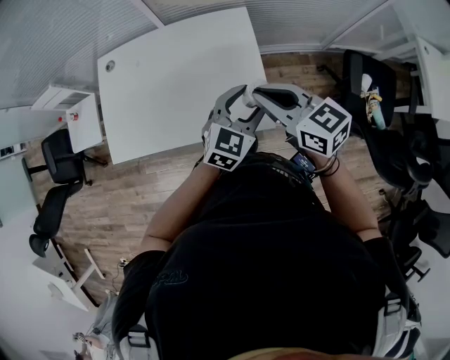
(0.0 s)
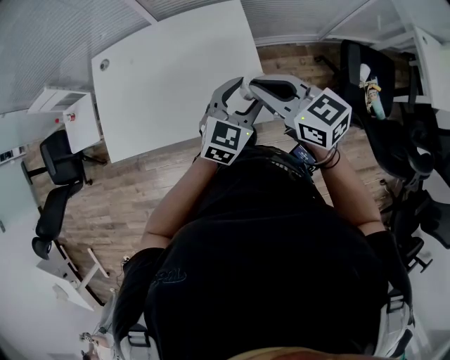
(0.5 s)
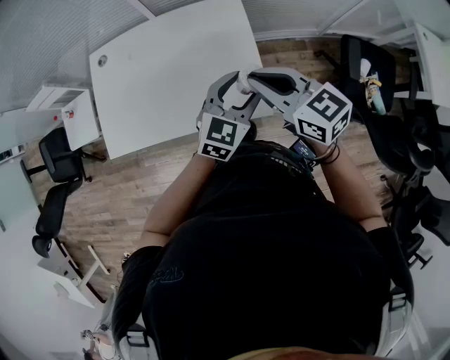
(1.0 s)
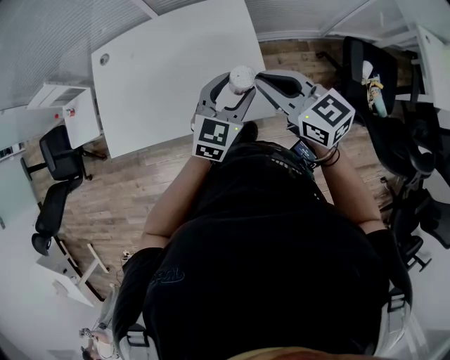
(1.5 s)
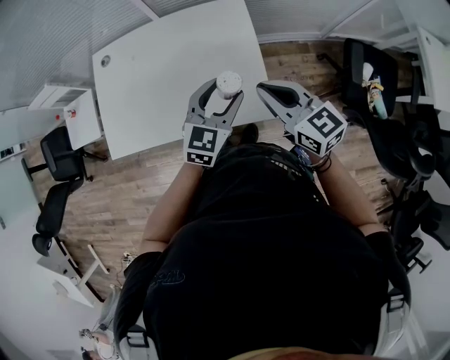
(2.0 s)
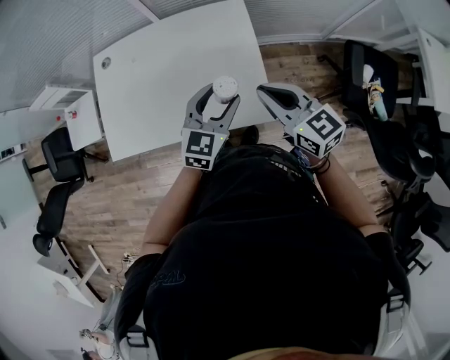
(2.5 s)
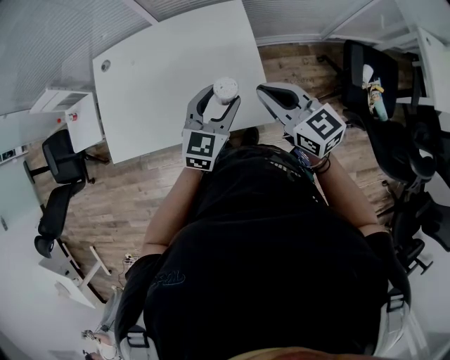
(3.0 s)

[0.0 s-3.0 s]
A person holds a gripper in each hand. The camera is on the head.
0.0 to 1.5 s: The grippers stay close to where they were, moving slightly.
1.5 to 3.0 s: There are only small adjustments of the grippers.

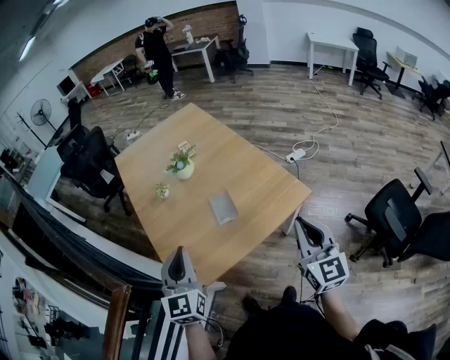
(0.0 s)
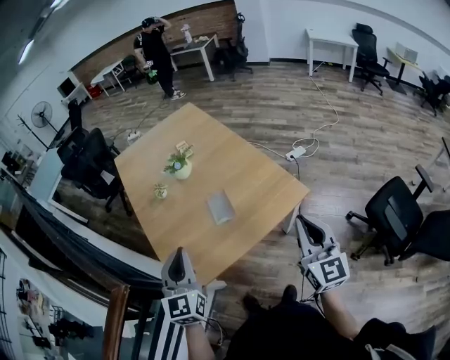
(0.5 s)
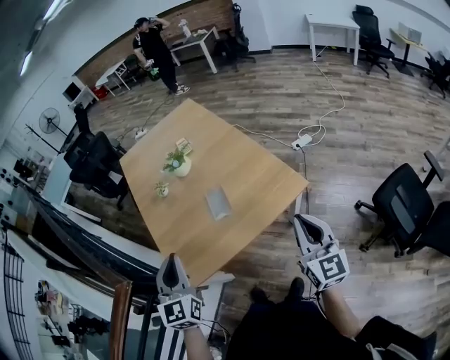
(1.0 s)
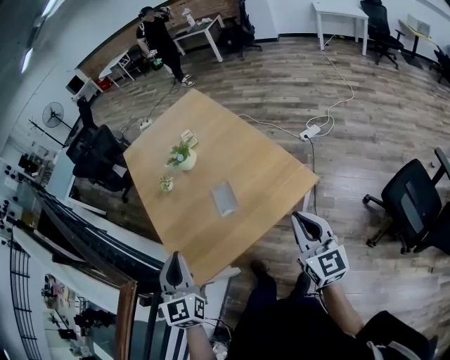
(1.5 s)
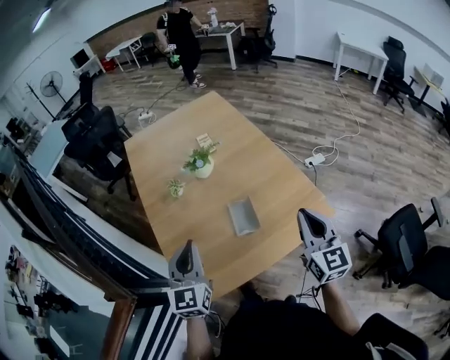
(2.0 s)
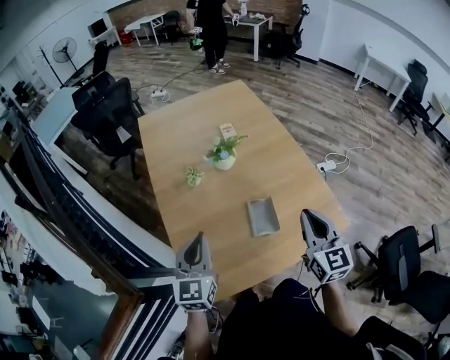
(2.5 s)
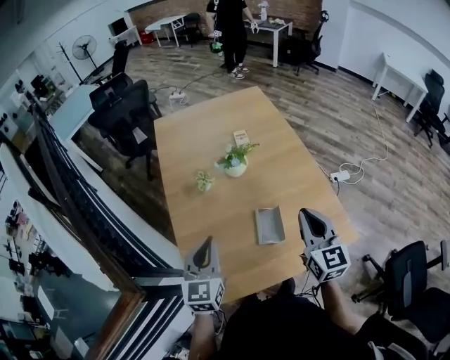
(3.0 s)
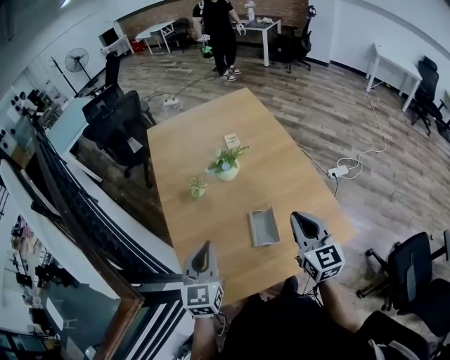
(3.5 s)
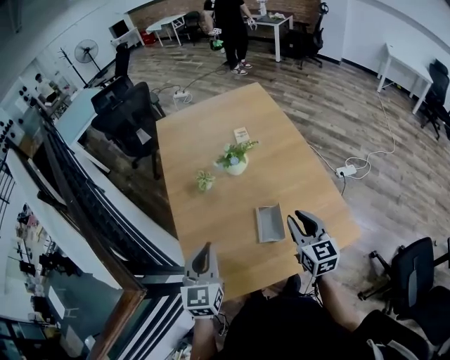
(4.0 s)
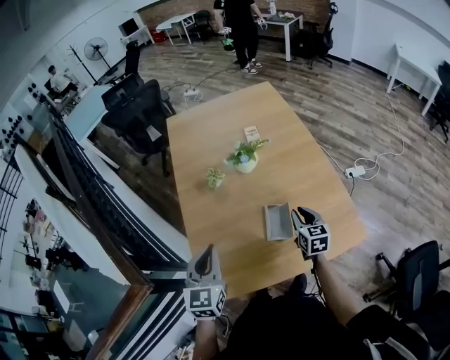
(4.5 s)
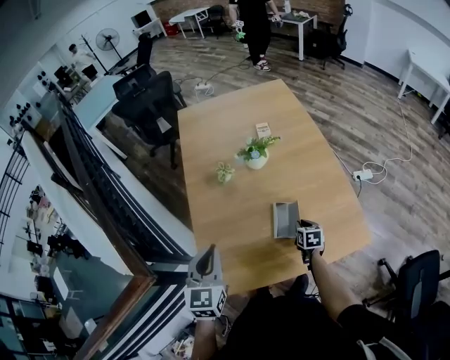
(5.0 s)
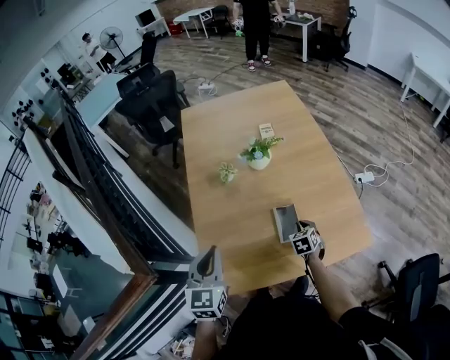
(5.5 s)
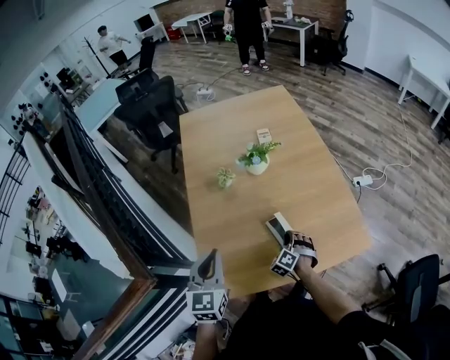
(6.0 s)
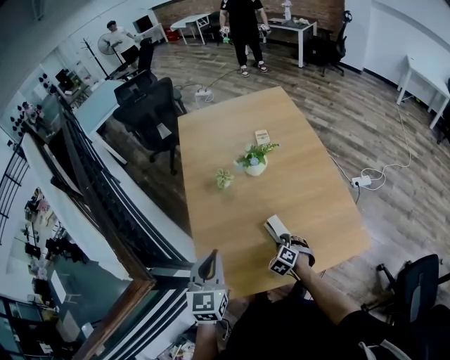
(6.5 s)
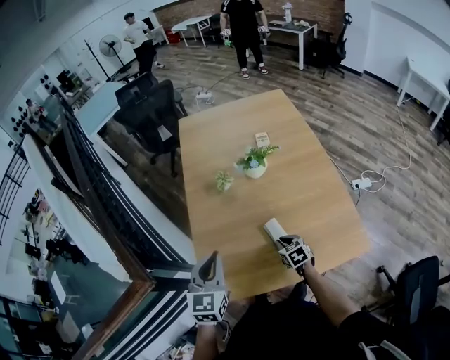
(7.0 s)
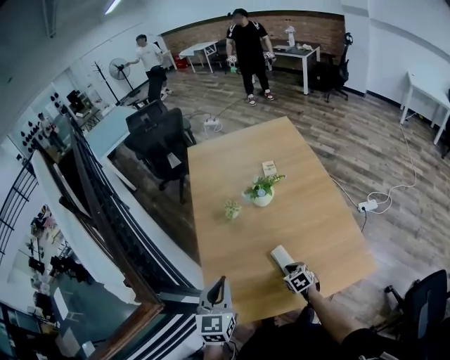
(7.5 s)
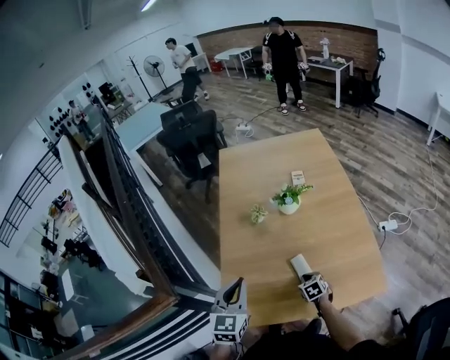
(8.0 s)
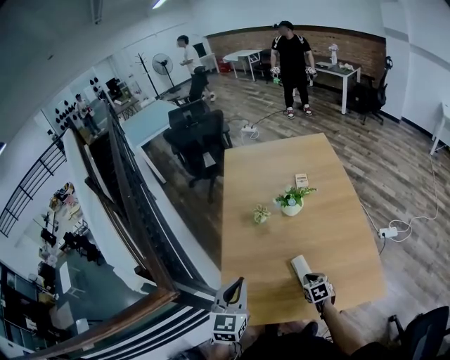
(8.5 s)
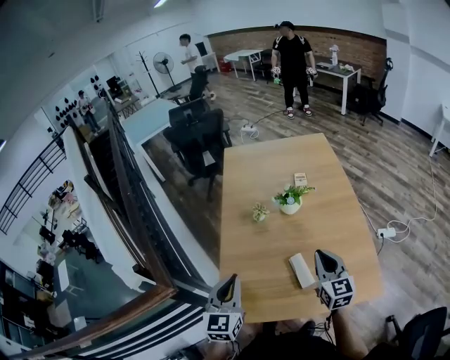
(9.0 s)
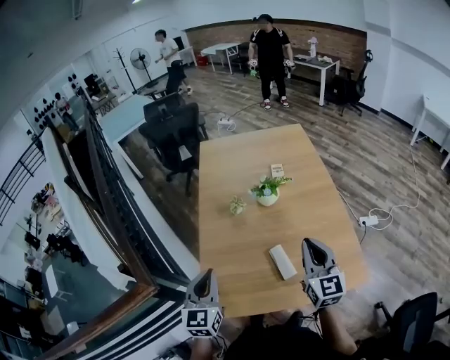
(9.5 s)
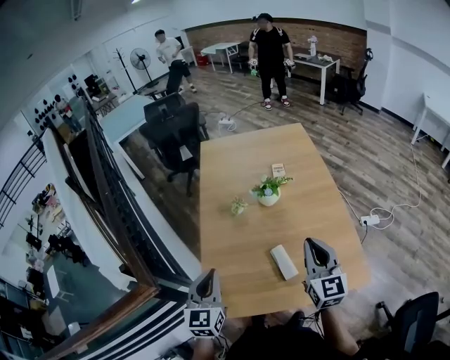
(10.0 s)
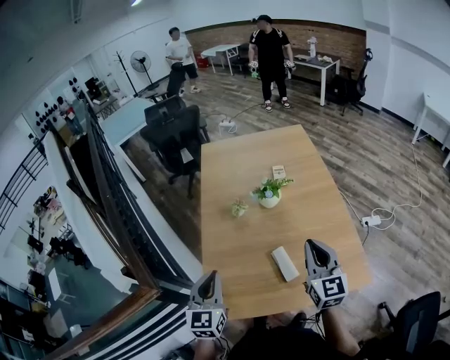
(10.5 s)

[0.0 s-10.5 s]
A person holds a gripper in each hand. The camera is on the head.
0.0 to 2.0 s: The grippers both shift forward by some 15 cm.
2.0 to 4.0 s: The left gripper moves approximately 5 cm. The right gripper is displaced forward, to the left and downward by roughly 15 cm, and opens its fingers.
4.0 to 6.5 s: The right gripper heads downward, covering some 25 cm, and tilts its fingers some 40 degrees downward.
6.5 to 8.5 s: The right gripper turns by approximately 40 degrees, and closes up.
8.5 to 10.5 s: The right gripper goes roughly 30 cm upward, and points its fingers approximately 50 degrees further upward.

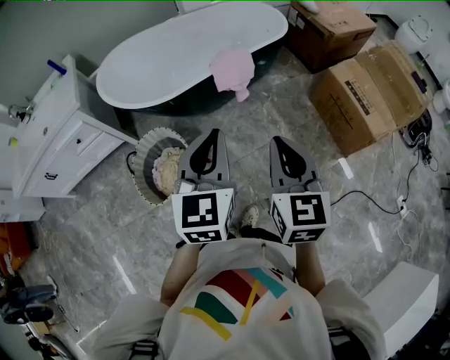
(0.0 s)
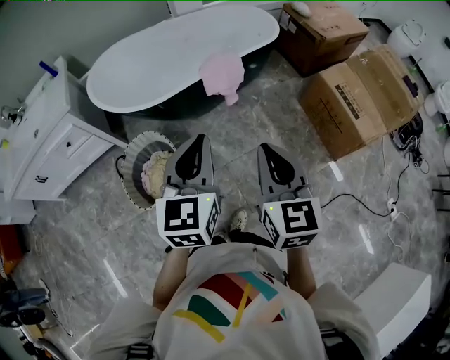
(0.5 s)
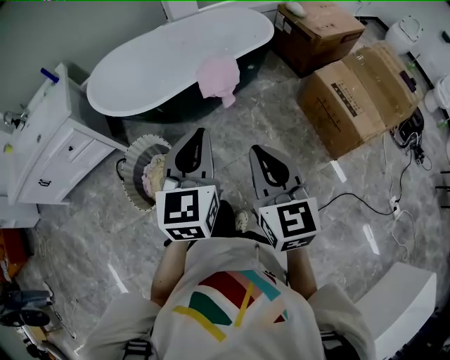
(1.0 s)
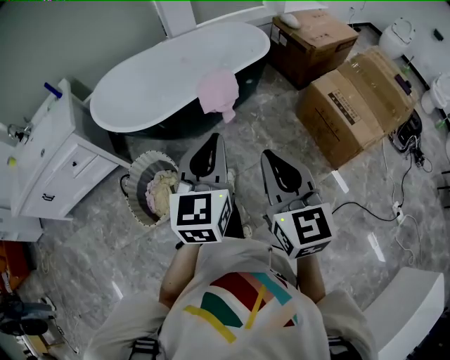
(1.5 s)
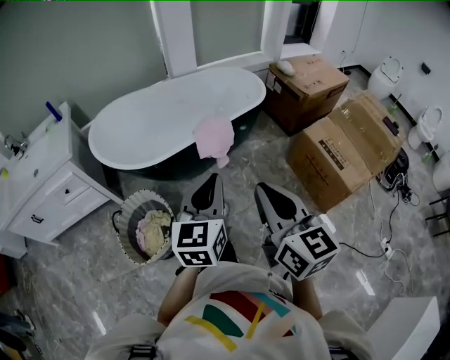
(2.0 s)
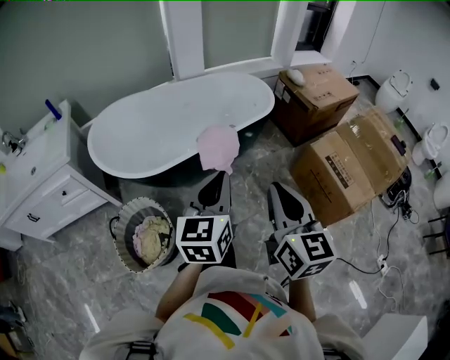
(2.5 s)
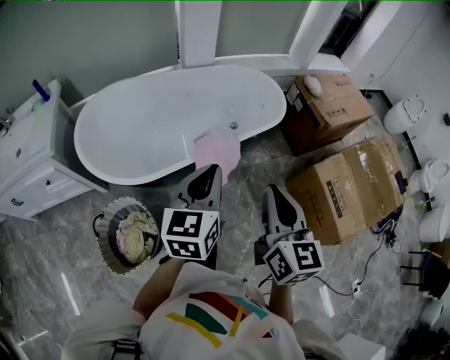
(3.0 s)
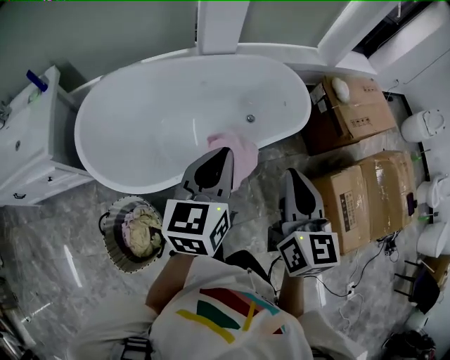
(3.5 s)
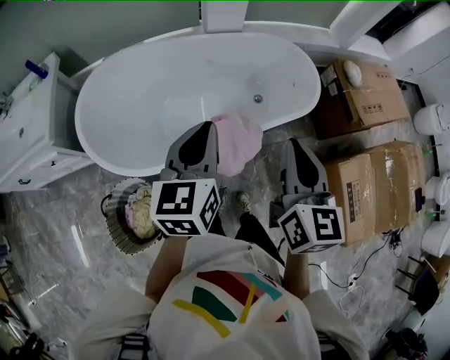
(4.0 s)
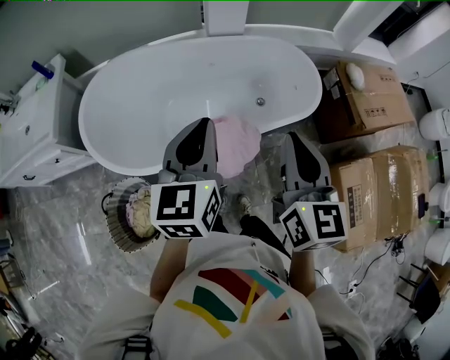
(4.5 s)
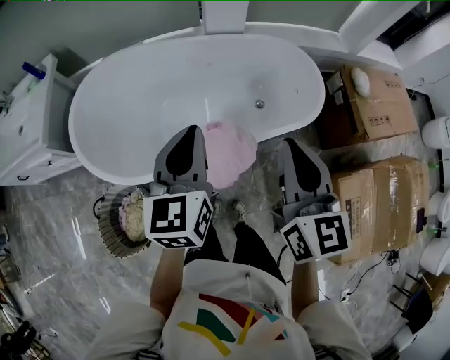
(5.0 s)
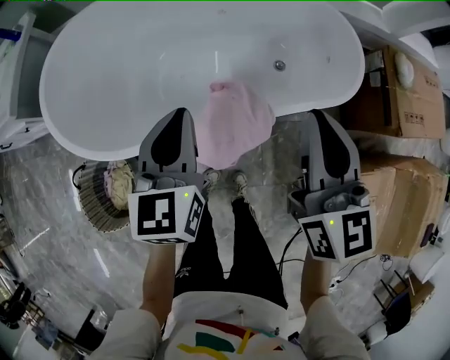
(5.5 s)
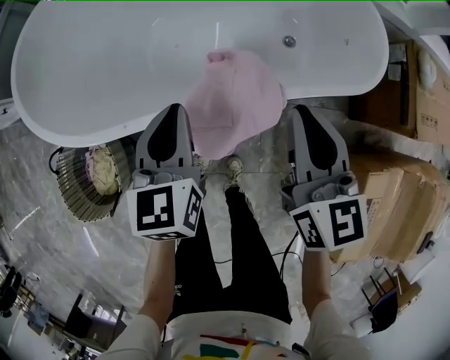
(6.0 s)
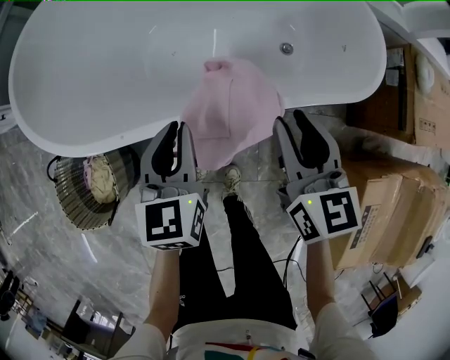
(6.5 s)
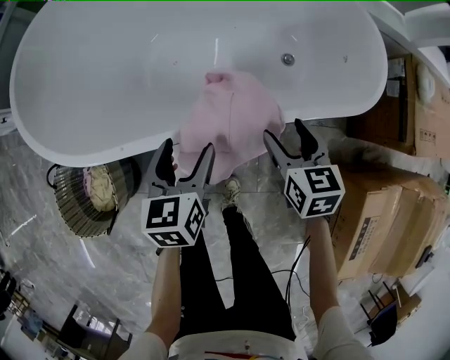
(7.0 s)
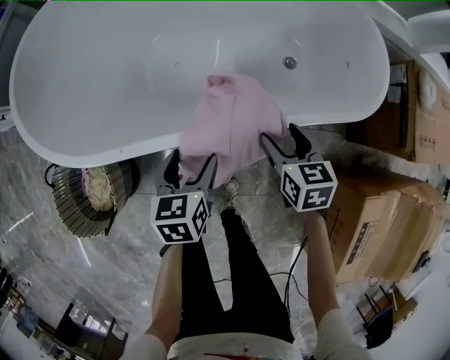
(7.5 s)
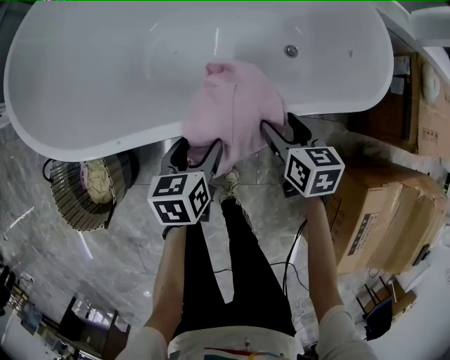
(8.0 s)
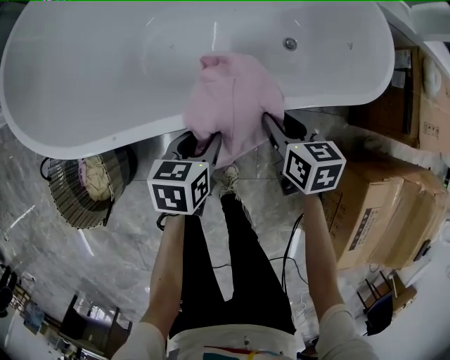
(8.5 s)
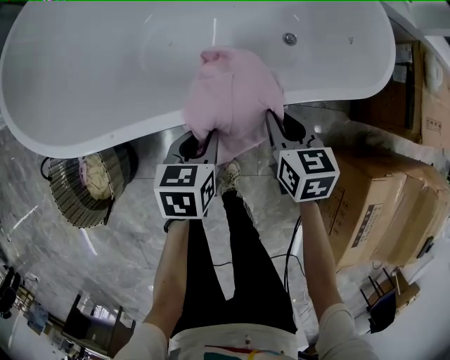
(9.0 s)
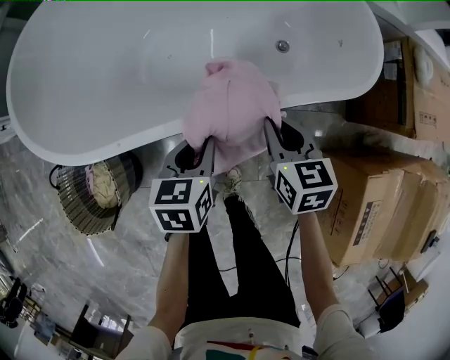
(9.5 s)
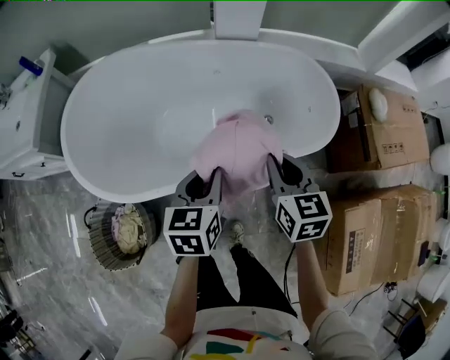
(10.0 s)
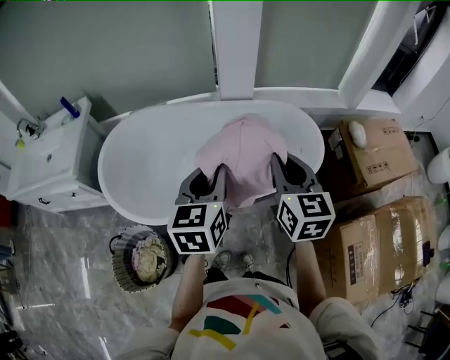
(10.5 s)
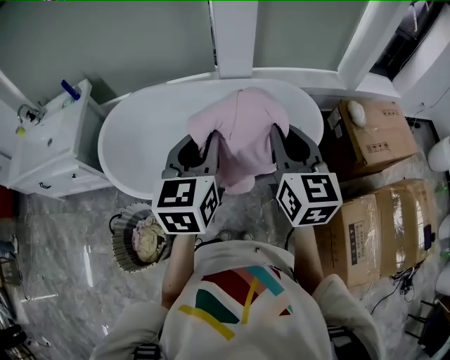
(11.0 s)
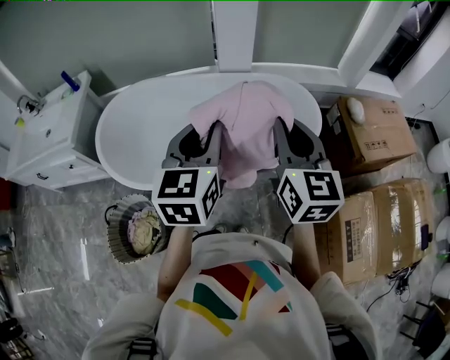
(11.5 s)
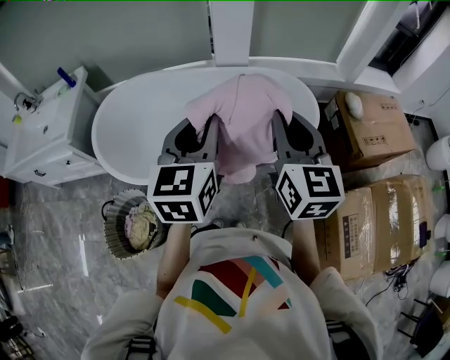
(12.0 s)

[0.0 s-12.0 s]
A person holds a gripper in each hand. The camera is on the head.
0.0 to 2.0 s: The right gripper moves upward, approximately 5 cm. The left gripper changes place by some 5 cm.
2.0 to 4.0 s: The pair of grippers is taken forward, some 40 cm.
4.0 to 6.0 s: Both grippers move downward, about 30 cm. The right gripper rotates some 20 degrees; the left gripper changes its angle by approximately 20 degrees.
6.0 to 8.0 s: The grippers both shift downward by about 20 cm. The right gripper rotates roughly 30 degrees, and opens. The left gripper turns by roughly 30 degrees, and opens.
8.0 to 10.0 s: Both grippers travel together upward, approximately 30 cm. The right gripper turns by some 20 degrees, and closes up; the left gripper changes its angle by about 20 degrees, and closes up.
10.0 to 12.0 s: Both grippers move upward, some 30 cm. The right gripper changes its angle by roughly 30 degrees; the left gripper turns by some 30 degrees.

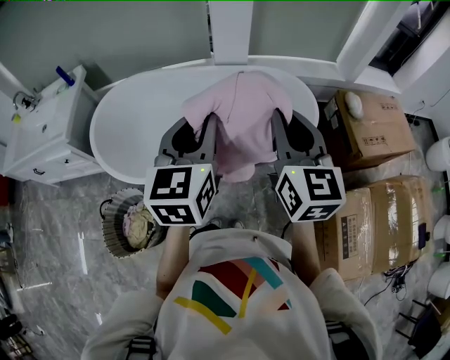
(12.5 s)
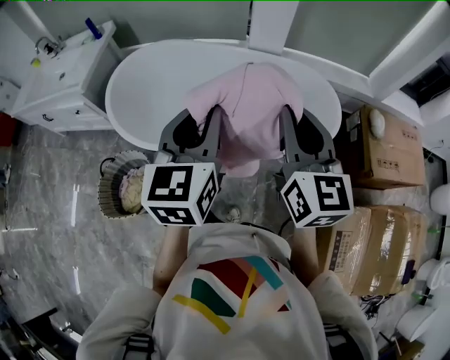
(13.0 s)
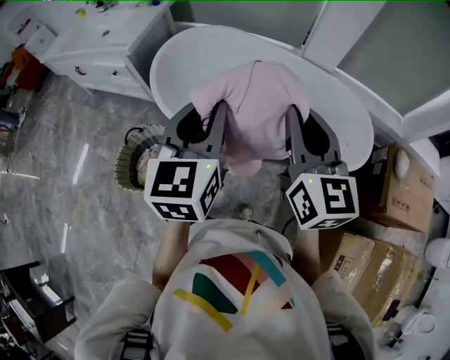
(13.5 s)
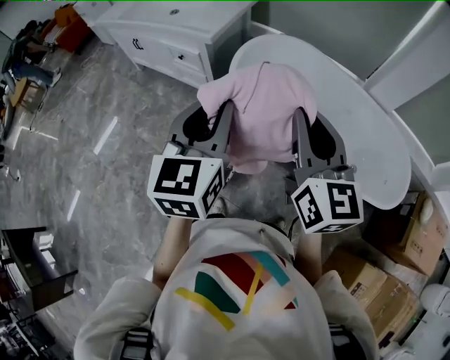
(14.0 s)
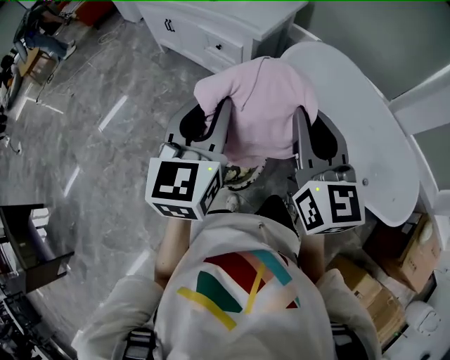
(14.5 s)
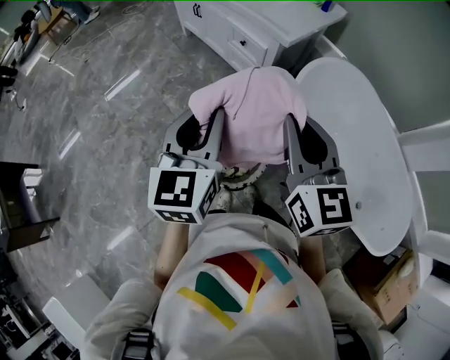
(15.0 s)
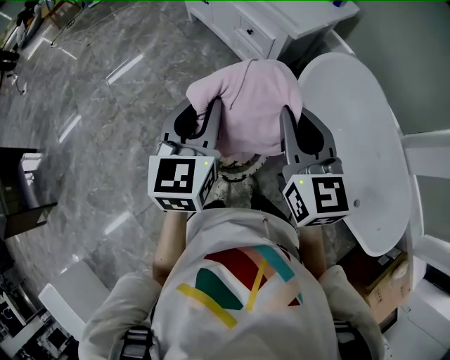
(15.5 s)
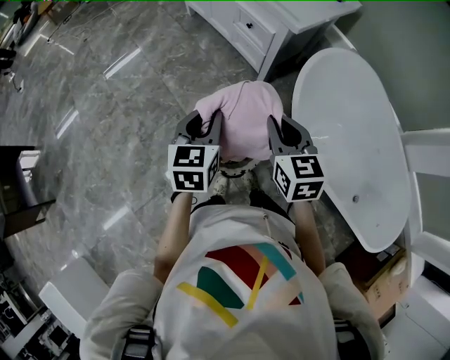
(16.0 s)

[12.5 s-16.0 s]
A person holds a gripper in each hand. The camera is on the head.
12.5 to 14.5 s: Both grippers are carried some 60 cm. The right gripper swivels some 50 degrees; the left gripper swivels approximately 40 degrees.
14.5 to 16.0 s: Both grippers travel together downward, about 20 cm. The right gripper swivels roughly 30 degrees, while the left gripper turns by approximately 30 degrees.
